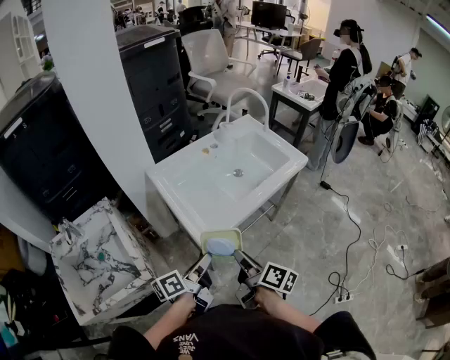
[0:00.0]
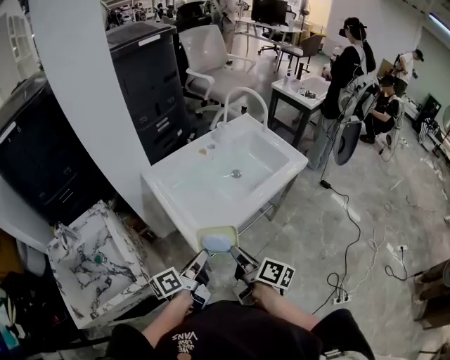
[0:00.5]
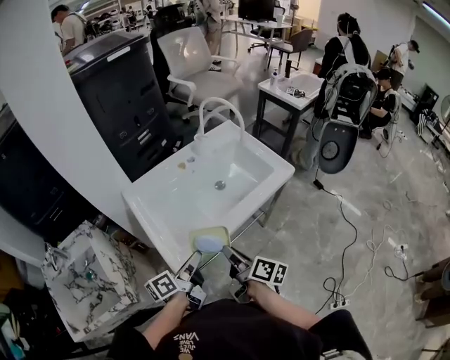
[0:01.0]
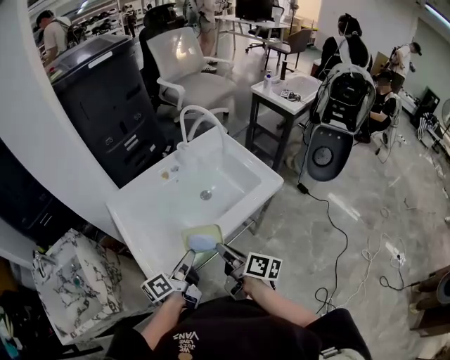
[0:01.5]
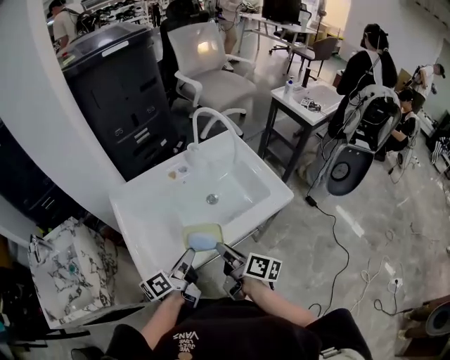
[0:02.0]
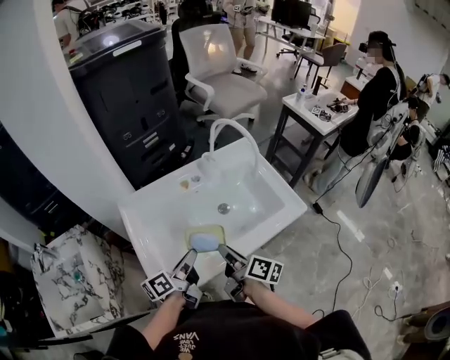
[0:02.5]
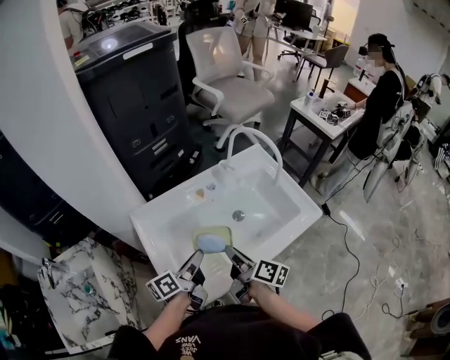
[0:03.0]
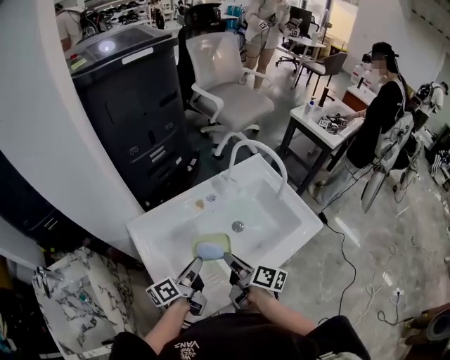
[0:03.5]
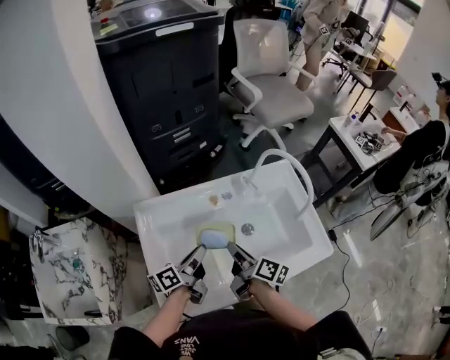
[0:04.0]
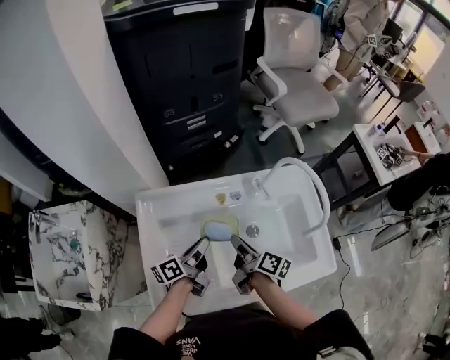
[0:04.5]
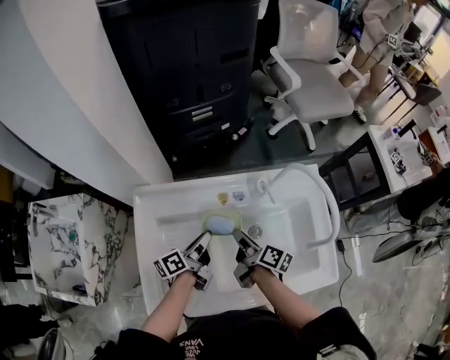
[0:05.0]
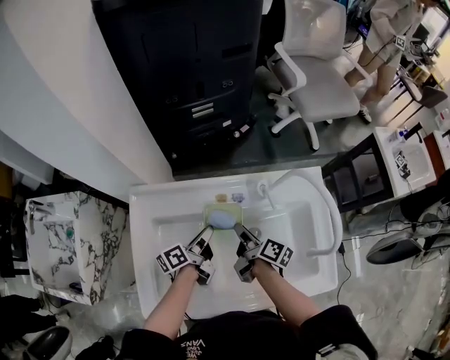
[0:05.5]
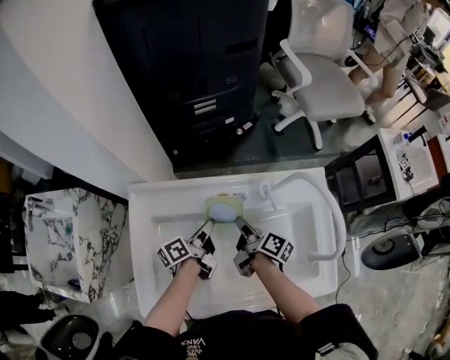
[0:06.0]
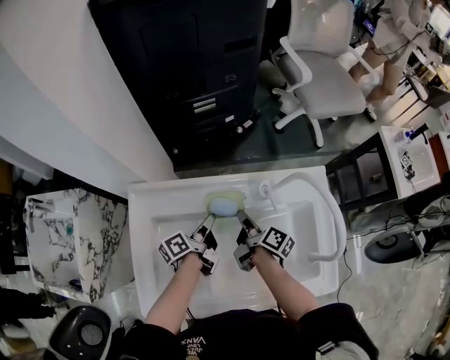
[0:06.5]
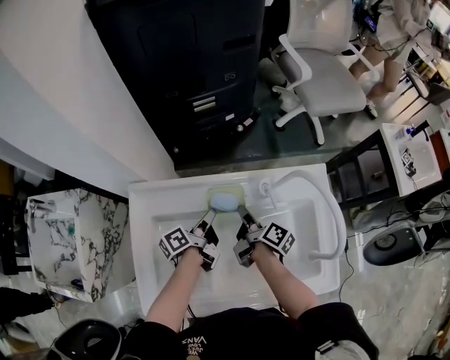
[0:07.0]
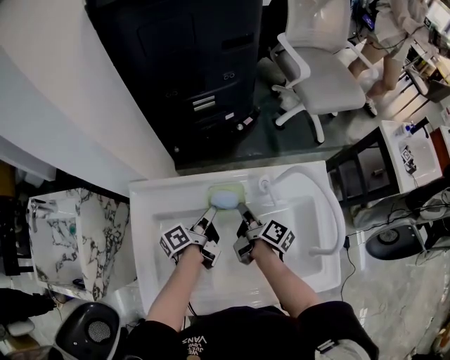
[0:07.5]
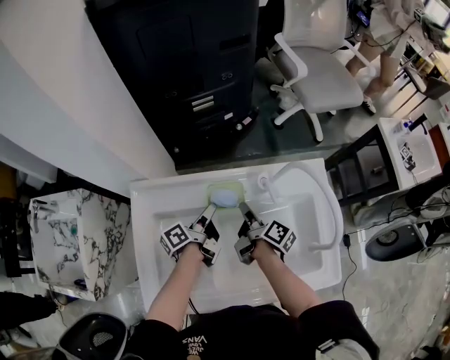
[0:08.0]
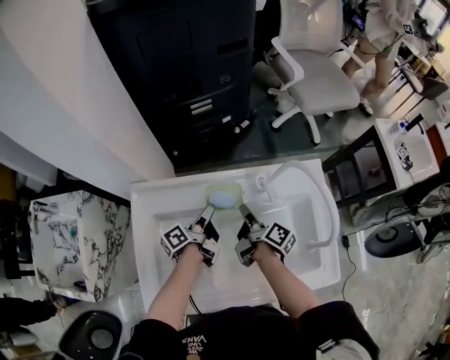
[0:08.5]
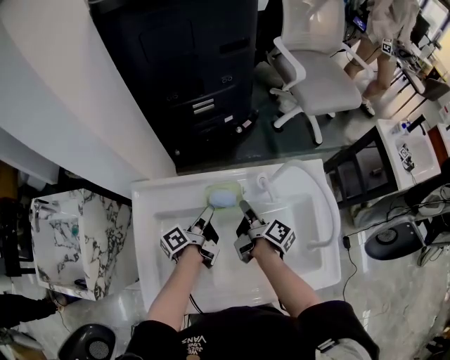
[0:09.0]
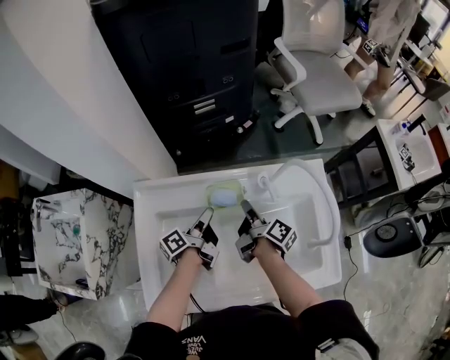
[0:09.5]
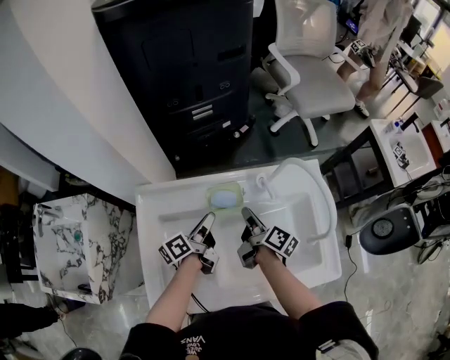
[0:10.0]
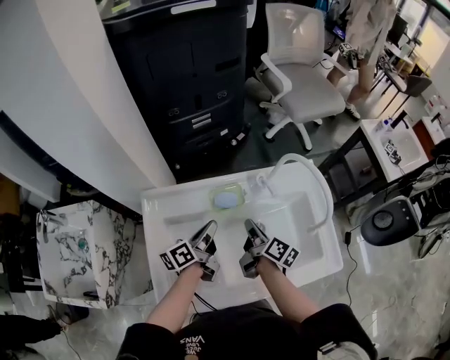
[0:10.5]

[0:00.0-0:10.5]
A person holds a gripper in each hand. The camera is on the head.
0:00.0 to 0:02.0: The two grippers go about 25 cm forward and to the right.
0:02.0 to 0:04.0: The two grippers go approximately 20 cm forward and to the left.
0:04.0 to 0:06.5: Both grippers travel together forward and downward, some 15 cm. The left gripper swivels some 20 degrees.
0:06.5 to 0:08.5: The grippers move only a little.
0:08.5 to 0:10.5: The right gripper shifts roughly 5 cm backward, and closes its fingers. The left gripper shifts roughly 10 cm upward and backward, rotates approximately 20 degrees, and closes its fingers.

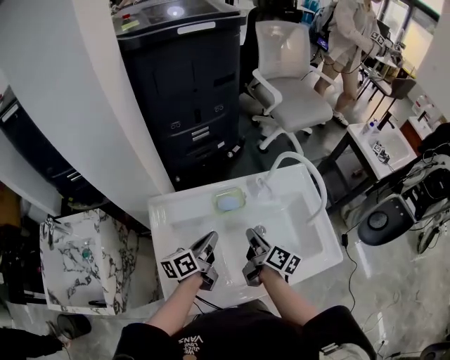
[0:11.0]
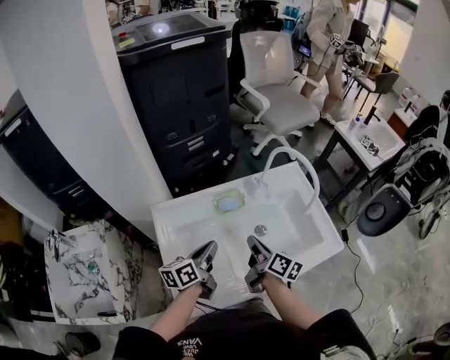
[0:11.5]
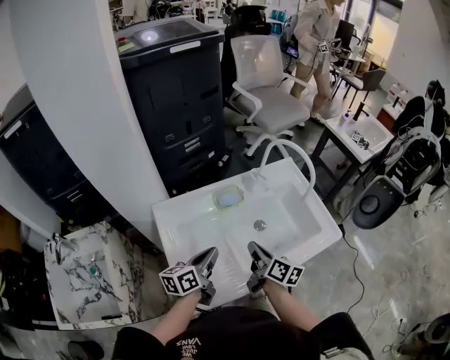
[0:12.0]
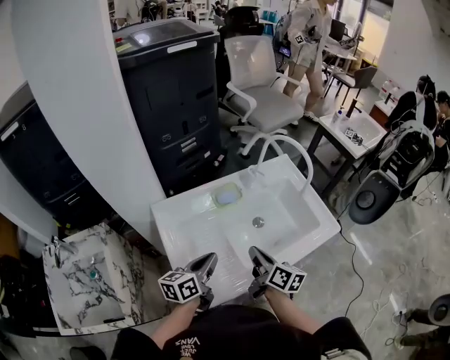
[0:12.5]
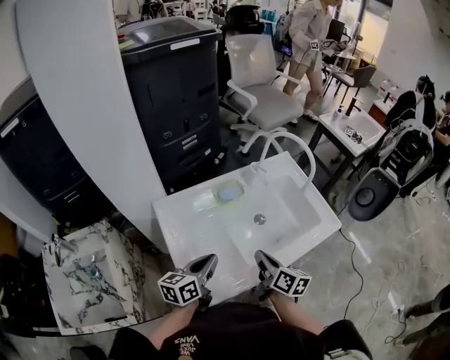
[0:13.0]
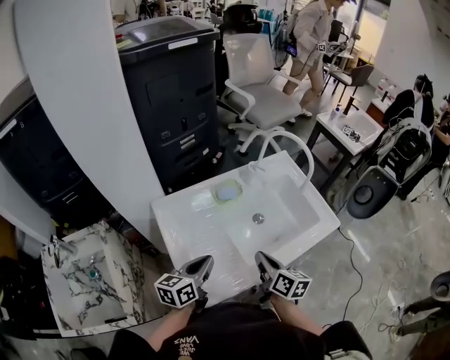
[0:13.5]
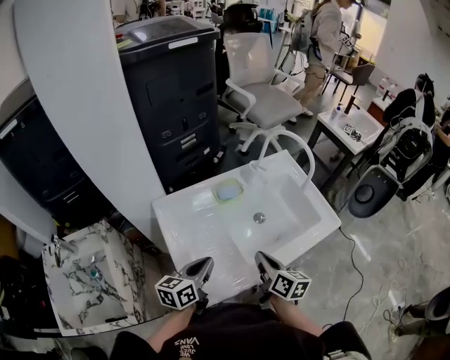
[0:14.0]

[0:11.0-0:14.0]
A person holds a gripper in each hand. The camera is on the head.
0:11.0 to 0:12.5: The grippers both shift backward by roughly 15 cm. The left gripper changes its angle by about 20 degrees.
0:12.5 to 0:14.0: The grippers stay close to where they were, moving slightly.

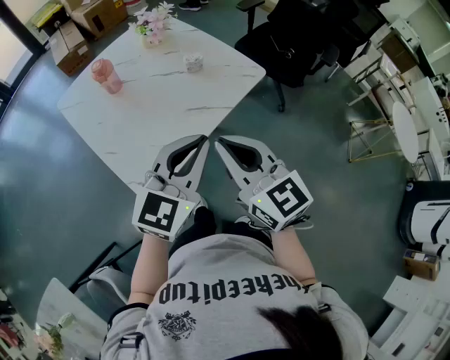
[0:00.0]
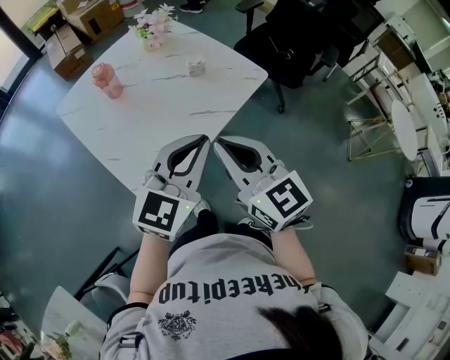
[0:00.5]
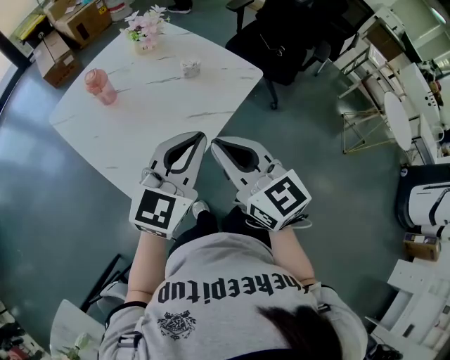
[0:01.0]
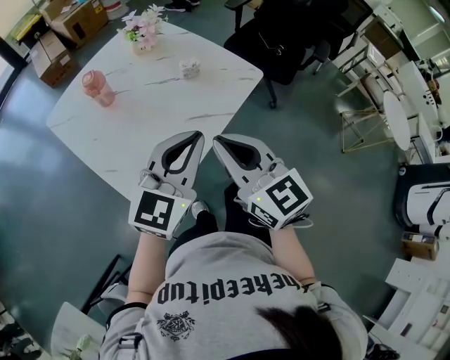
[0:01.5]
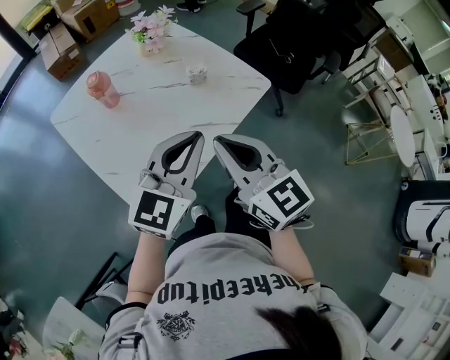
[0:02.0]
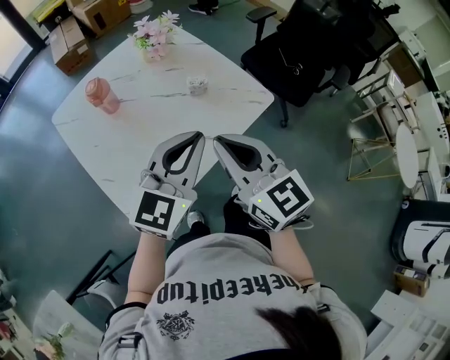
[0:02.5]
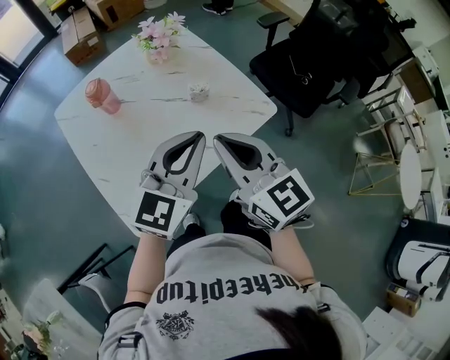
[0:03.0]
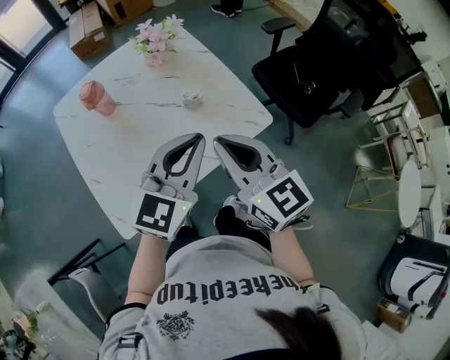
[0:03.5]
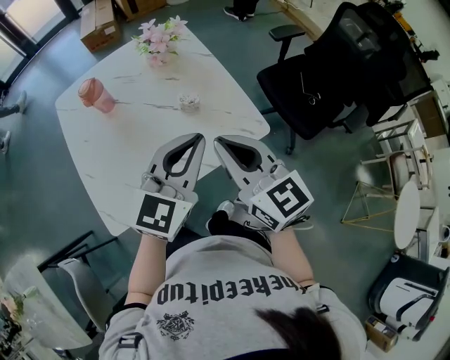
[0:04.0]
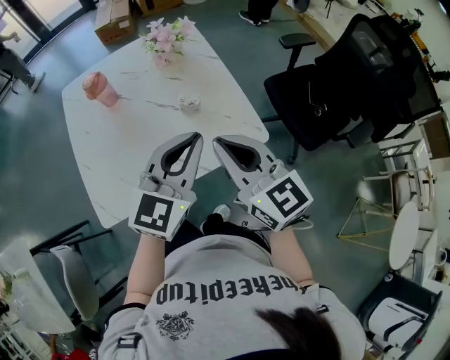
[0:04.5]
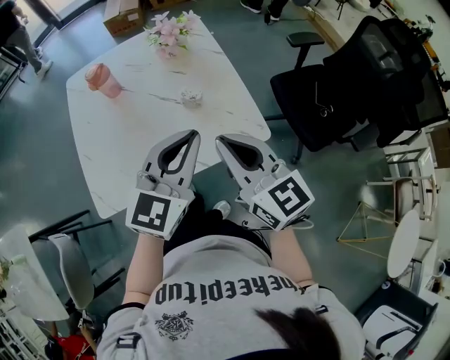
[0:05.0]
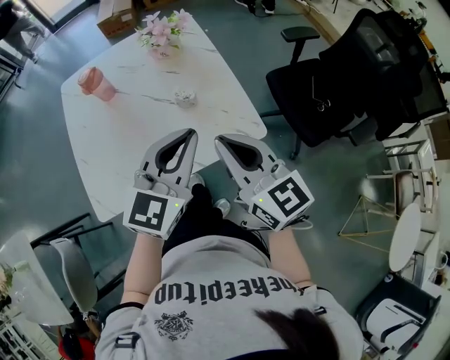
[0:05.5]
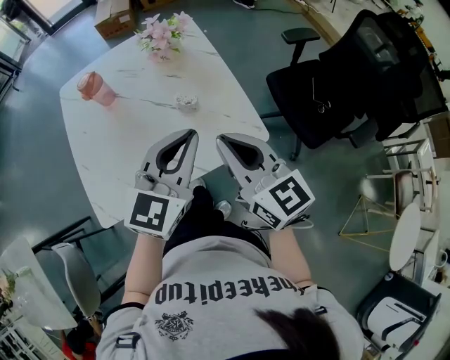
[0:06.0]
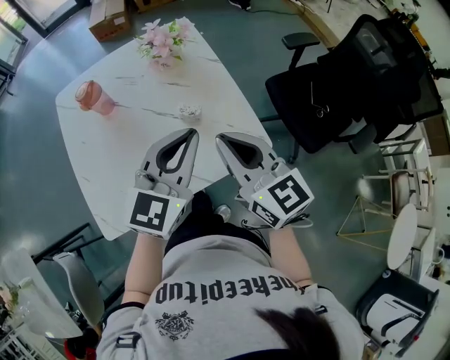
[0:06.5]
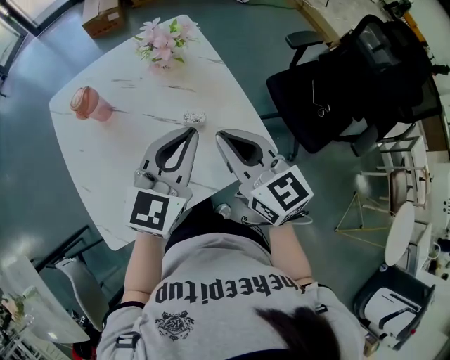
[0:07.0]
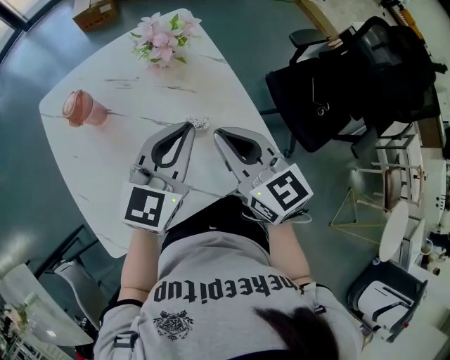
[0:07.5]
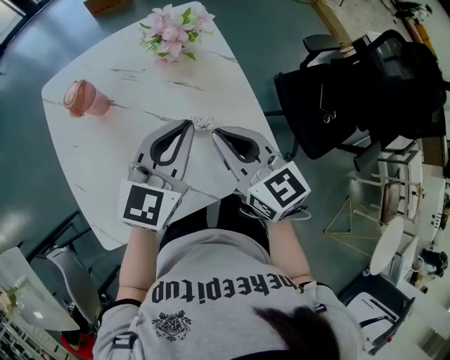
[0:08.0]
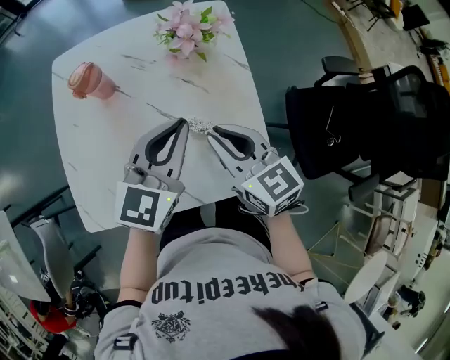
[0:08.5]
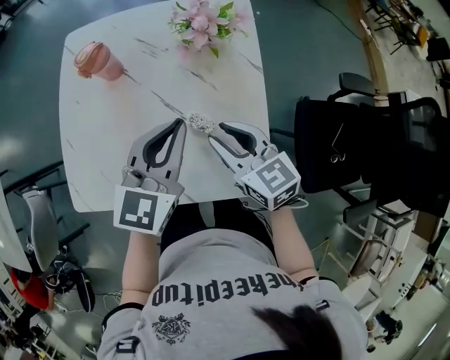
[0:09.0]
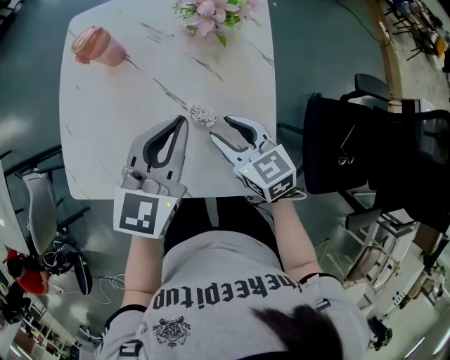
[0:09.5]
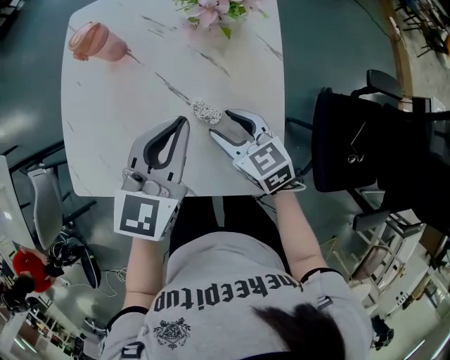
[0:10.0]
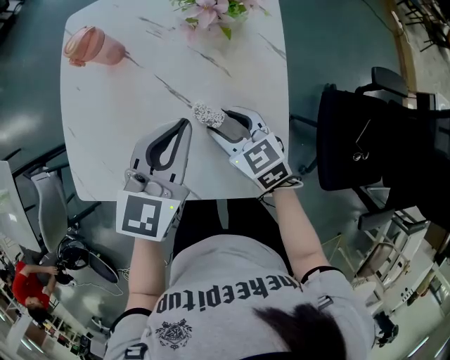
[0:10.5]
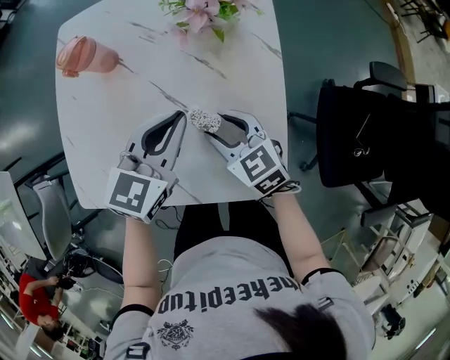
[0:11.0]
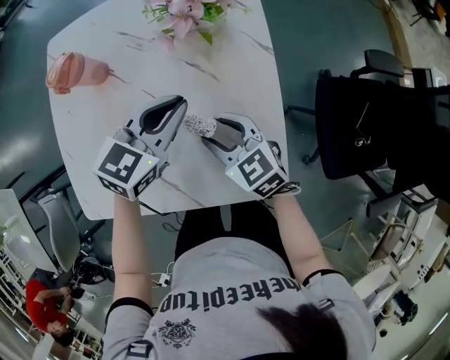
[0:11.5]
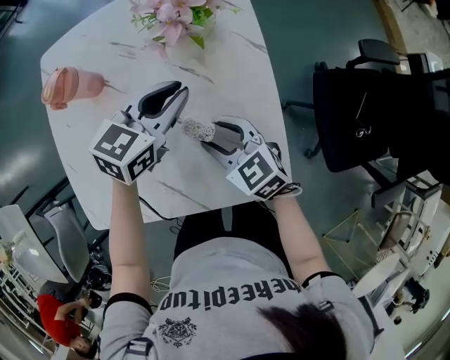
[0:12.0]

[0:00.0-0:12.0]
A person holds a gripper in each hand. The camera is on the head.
0:00.0 to 0:02.0: The two grippers go about 10 cm forward.
0:02.0 to 0:04.0: The grippers both shift to the right and forward by roughly 15 cm.
0:04.0 to 0:06.0: The grippers make only small movements.
0:06.0 to 0:08.0: The right gripper is displaced forward and downward by some 15 cm. Meanwhile the left gripper moves forward, some 15 cm.
0:08.0 to 0:10.0: The right gripper is displaced downward by about 15 cm, changes its angle by roughly 30 degrees, and opens its fingers, while the left gripper changes its angle by approximately 30 degrees.
0:10.0 to 0:12.0: The left gripper shifts approximately 15 cm forward and downward, and swivels about 30 degrees.

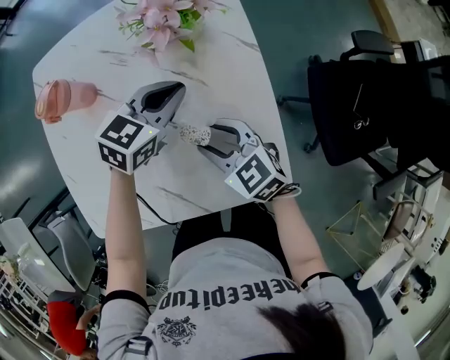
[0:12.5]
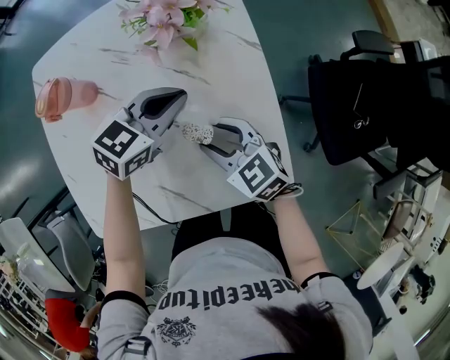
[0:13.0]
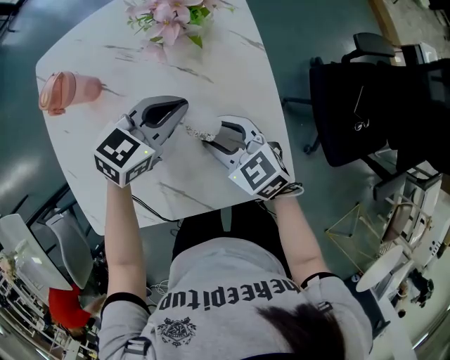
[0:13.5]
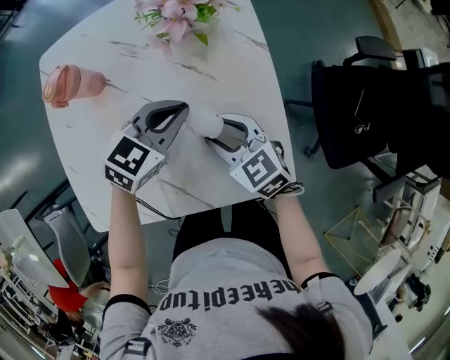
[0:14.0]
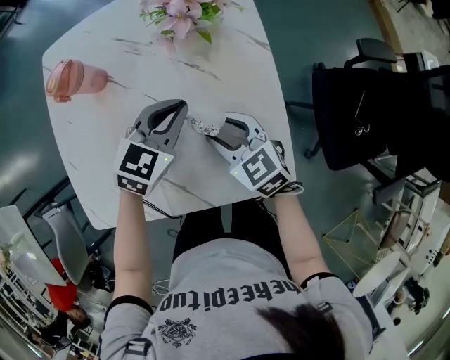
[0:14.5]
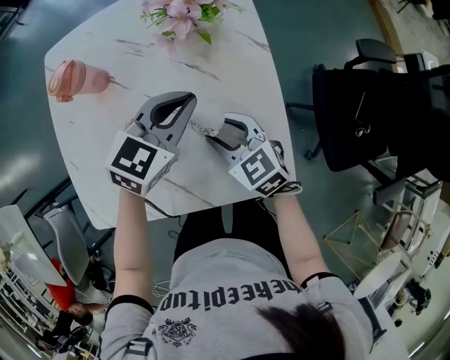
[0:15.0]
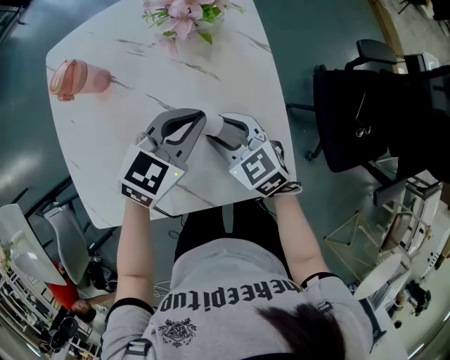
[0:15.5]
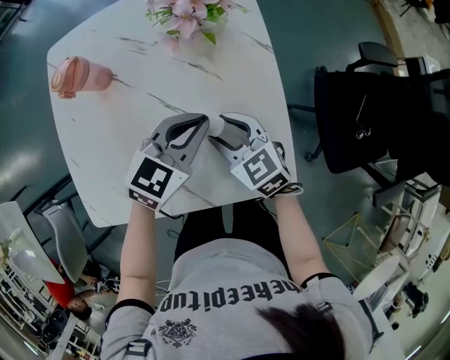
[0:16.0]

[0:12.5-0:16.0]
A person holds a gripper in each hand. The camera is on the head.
0:12.5 to 0:14.5: The left gripper is displaced backward by some 5 cm.
0:14.5 to 0:16.0: The left gripper changes place by roughly 5 cm.
